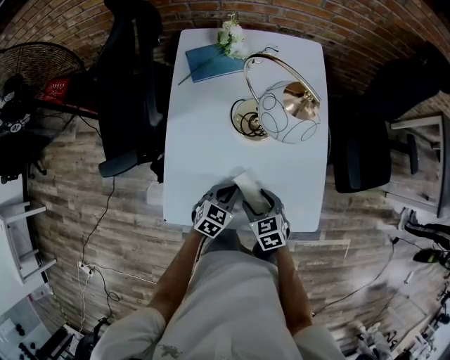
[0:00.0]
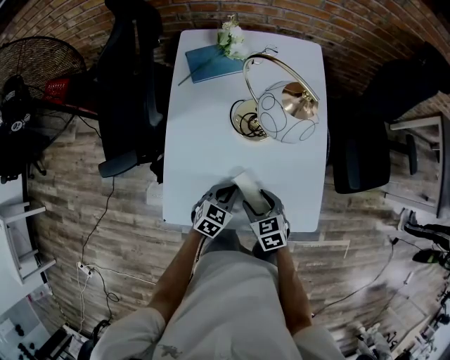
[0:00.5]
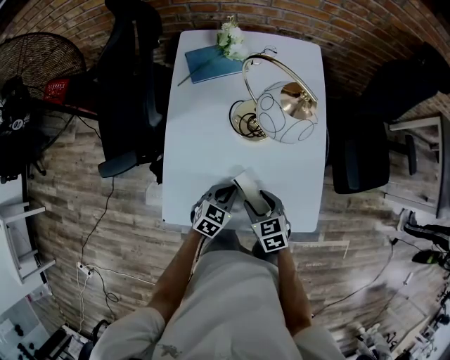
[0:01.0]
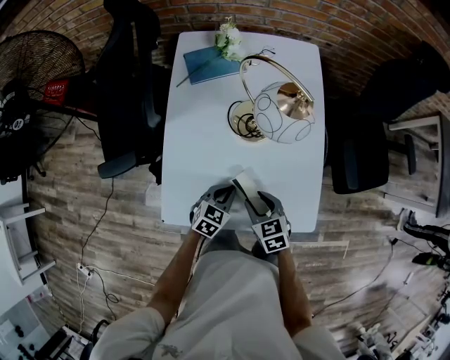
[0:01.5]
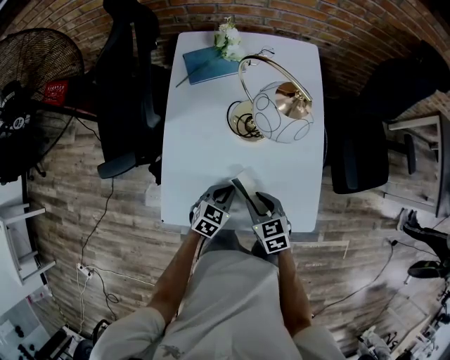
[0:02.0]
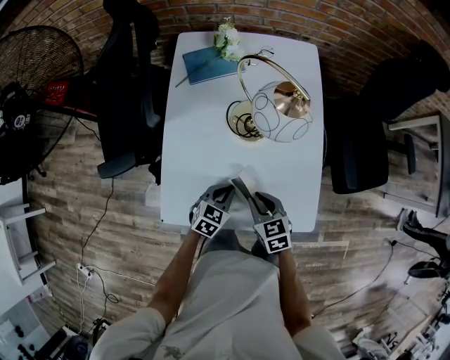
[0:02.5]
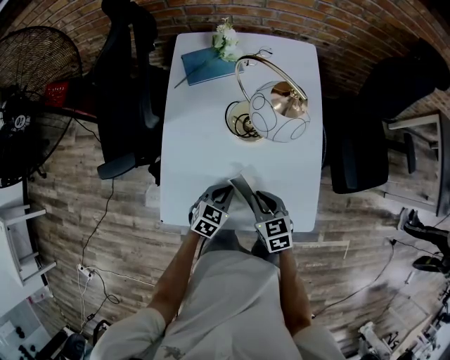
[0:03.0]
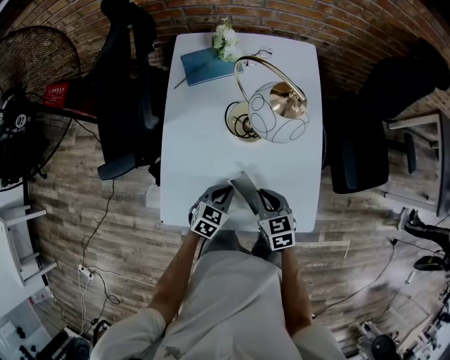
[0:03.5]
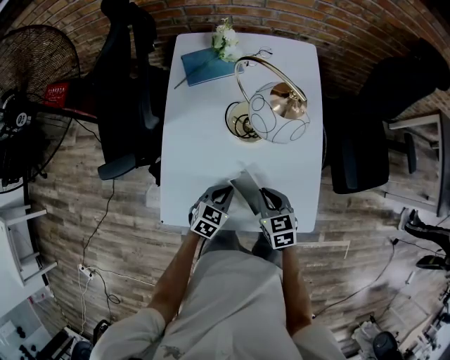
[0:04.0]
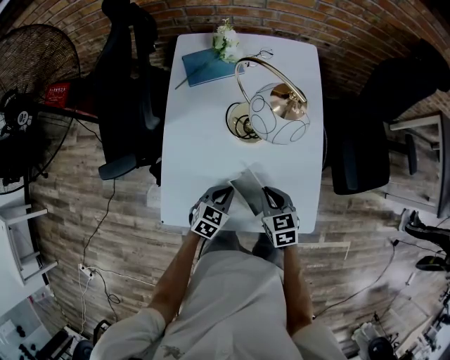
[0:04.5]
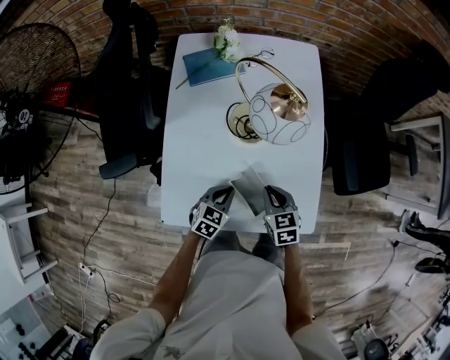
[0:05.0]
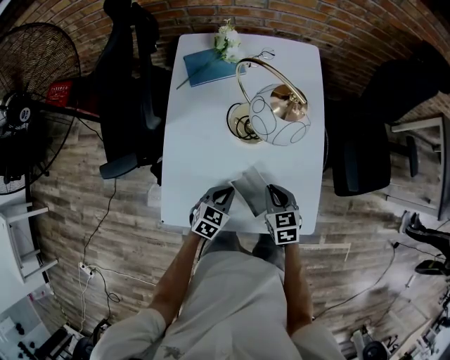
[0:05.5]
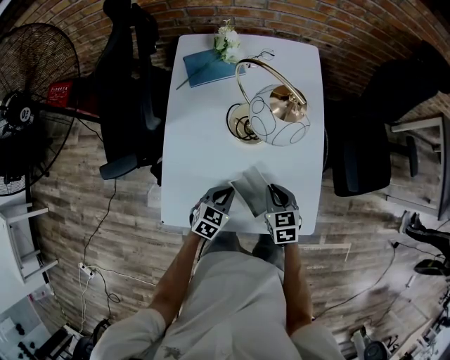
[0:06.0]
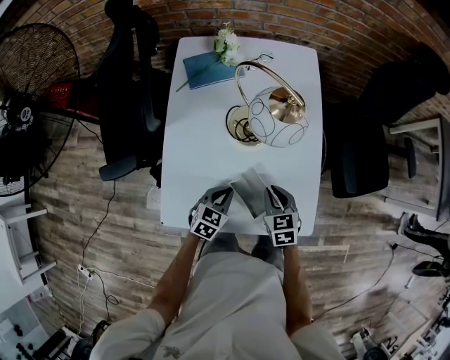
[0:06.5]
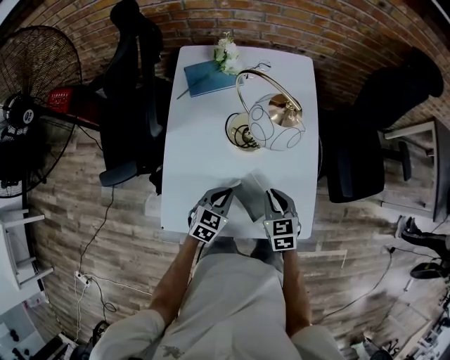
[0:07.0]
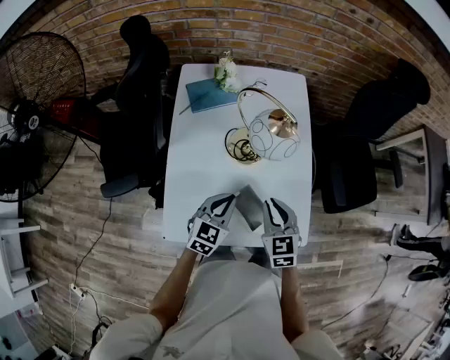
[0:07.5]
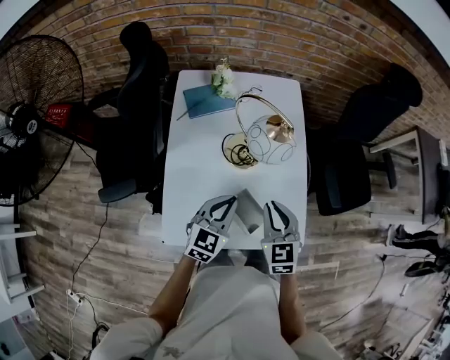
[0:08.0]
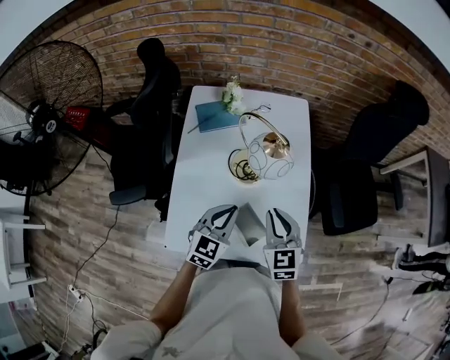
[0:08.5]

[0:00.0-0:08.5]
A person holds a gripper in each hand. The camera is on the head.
0:00.0 to 0:02.0: The right gripper closes up.
0:02.0 to 0:04.0: The right gripper closes.
0:04.0 to 0:06.5: The grippers move only a little.
0:06.5 to 0:08.5: The two grippers go about 20 cm upward. The left gripper turns by approximately 20 degrees. The right gripper rotates roughly 20 degrees.

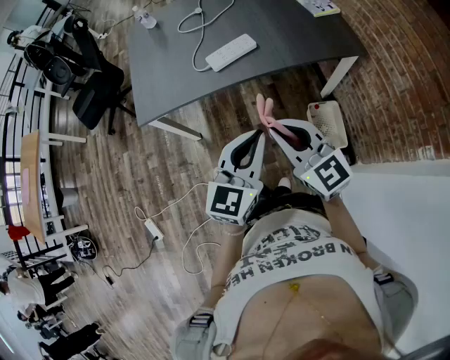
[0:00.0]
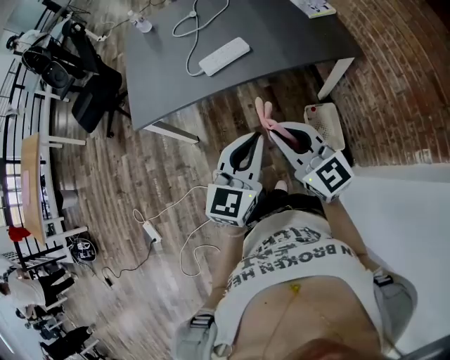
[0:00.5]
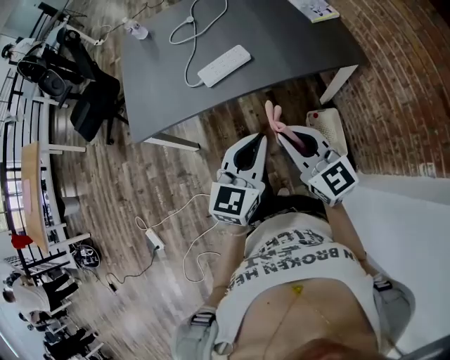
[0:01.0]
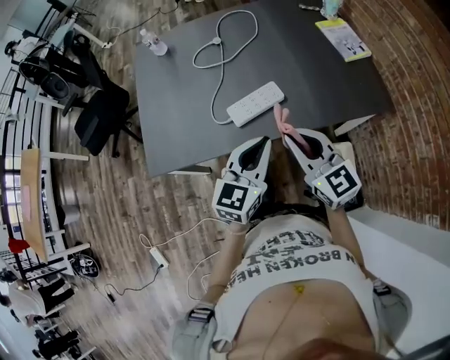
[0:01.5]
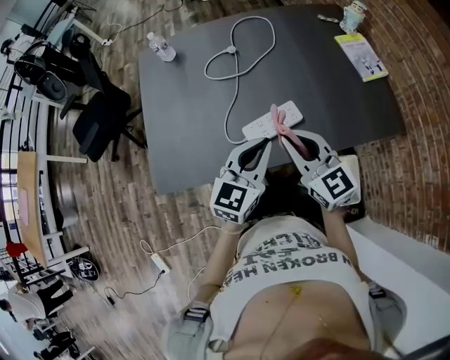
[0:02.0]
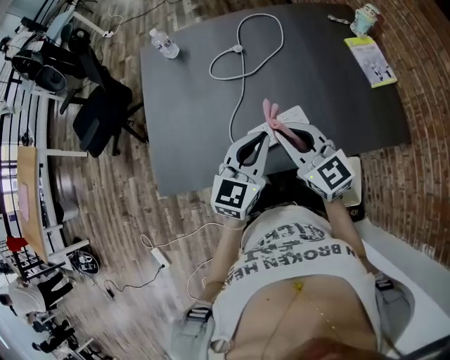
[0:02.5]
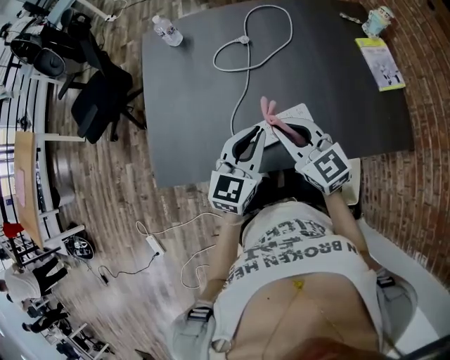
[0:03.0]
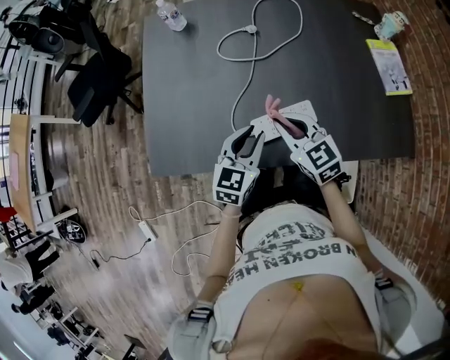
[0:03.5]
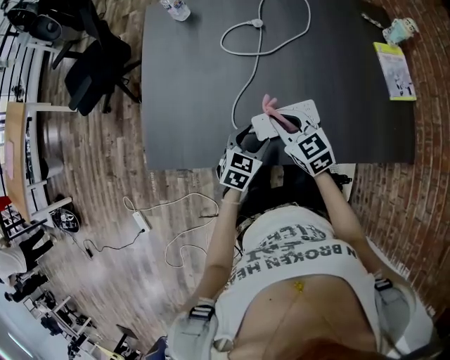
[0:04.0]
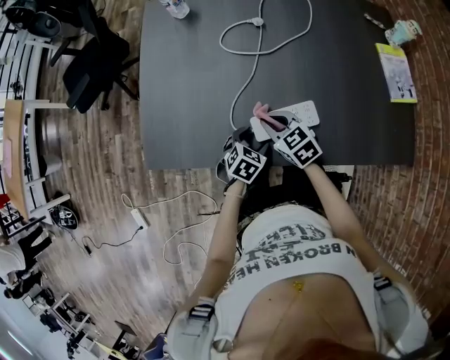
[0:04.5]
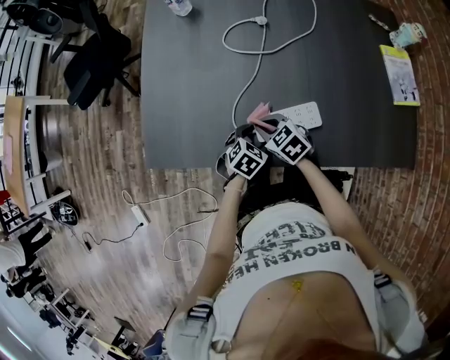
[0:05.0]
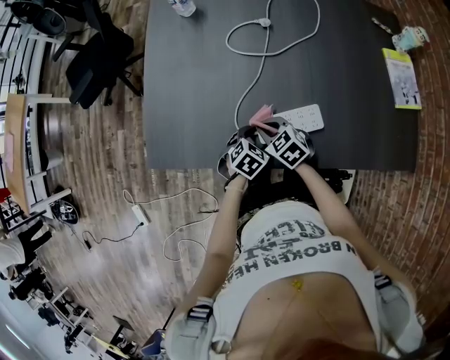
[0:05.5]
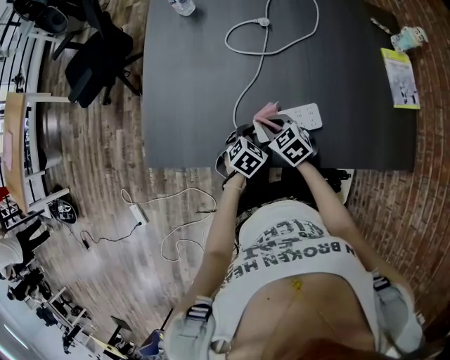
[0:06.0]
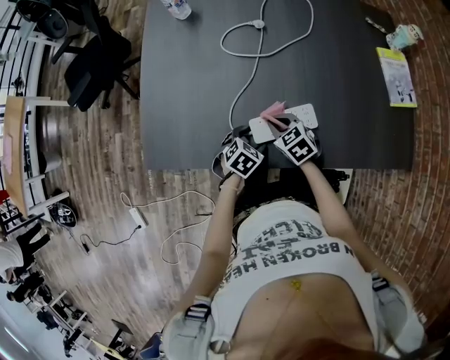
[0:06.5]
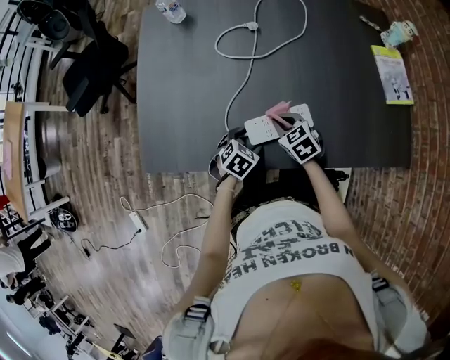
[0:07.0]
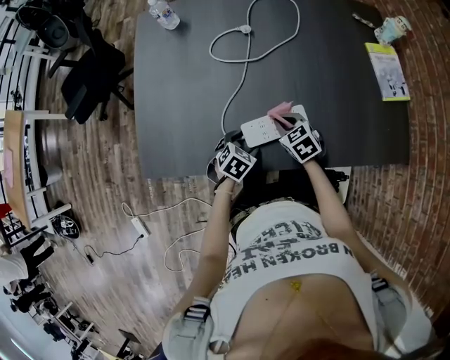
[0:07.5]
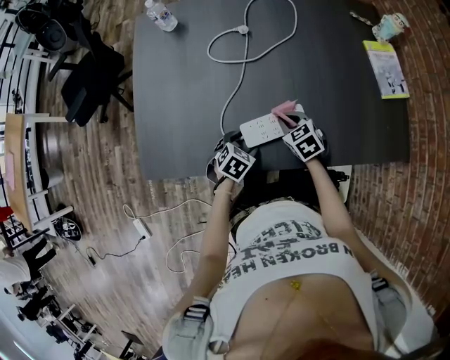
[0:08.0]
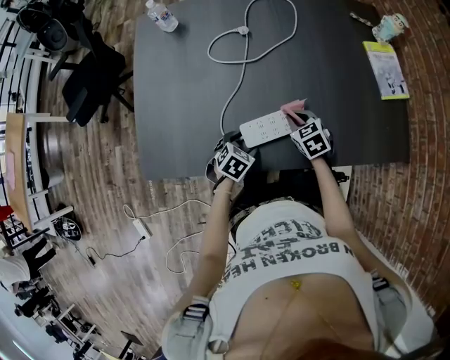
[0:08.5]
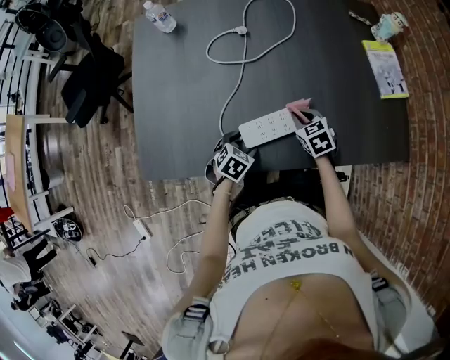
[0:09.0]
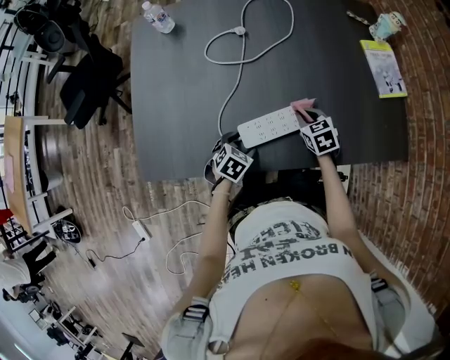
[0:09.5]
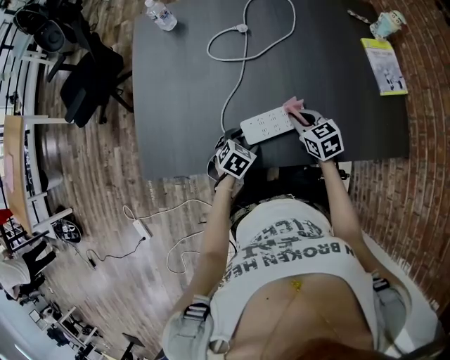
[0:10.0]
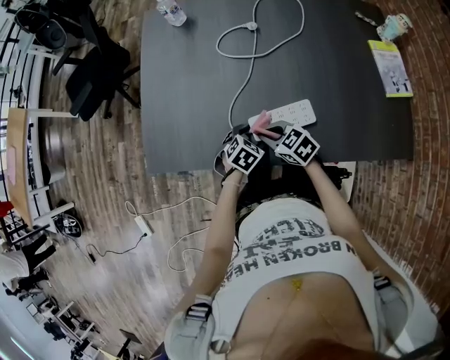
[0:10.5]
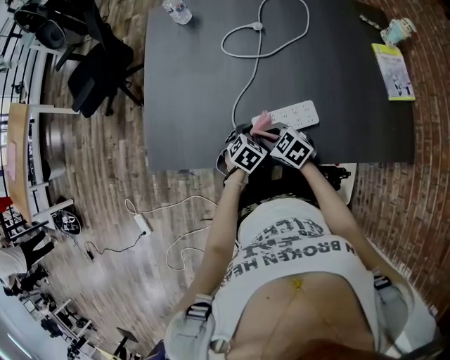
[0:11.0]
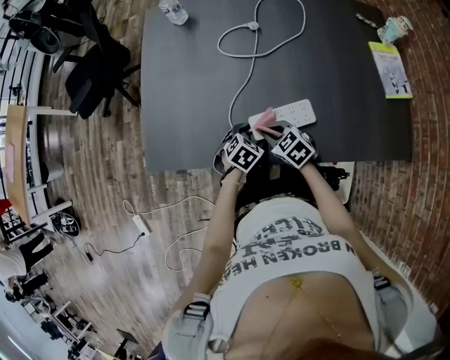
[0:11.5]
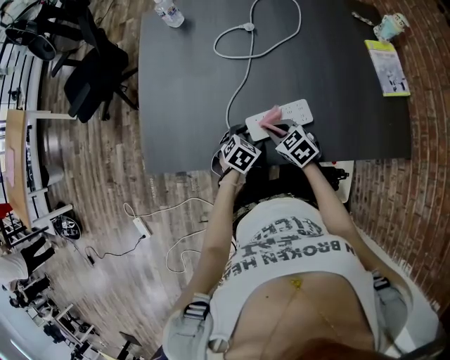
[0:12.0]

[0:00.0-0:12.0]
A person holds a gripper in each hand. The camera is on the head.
0:00.0 to 0:02.0: The grippers both shift forward by about 35 cm.
0:02.0 to 0:04.0: The left gripper is displaced downward by approximately 20 cm, swivels approximately 30 degrees, and opens up; the right gripper goes approximately 20 cm downward and forward, and swivels roughly 30 degrees.
0:04.0 to 0:06.0: The grippers both shift downward by roughly 10 cm. The left gripper changes its angle by roughly 20 degrees, while the right gripper rotates about 20 degrees.
0:06.0 to 0:08.0: The right gripper heads to the right, covering approximately 10 cm.
0:10.0 to 0:12.0: The right gripper travels to the left by roughly 10 cm.

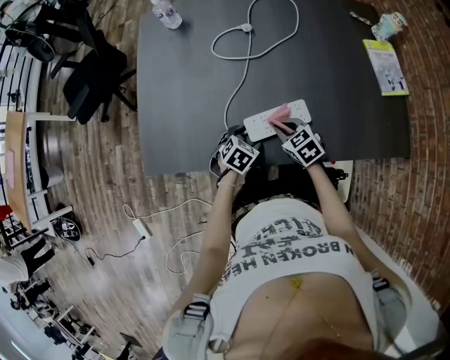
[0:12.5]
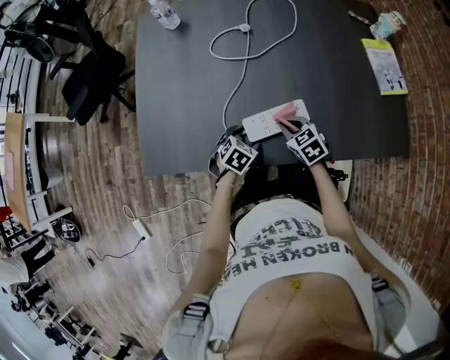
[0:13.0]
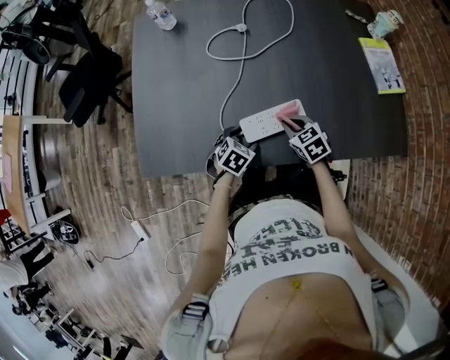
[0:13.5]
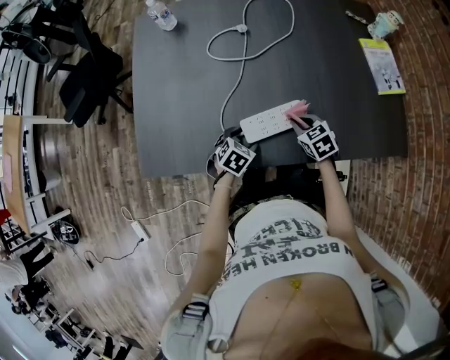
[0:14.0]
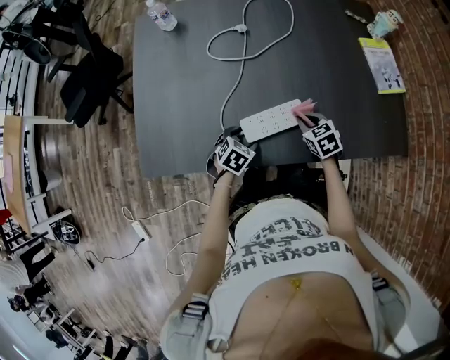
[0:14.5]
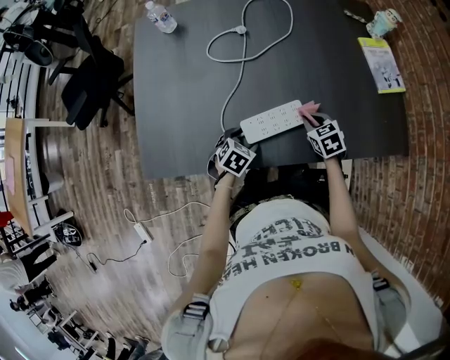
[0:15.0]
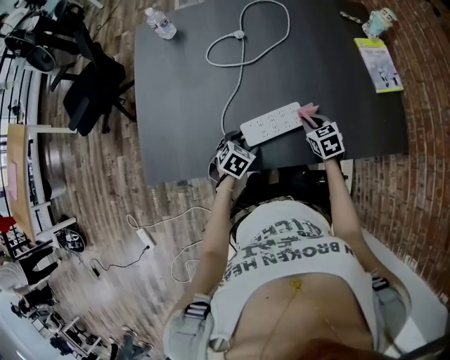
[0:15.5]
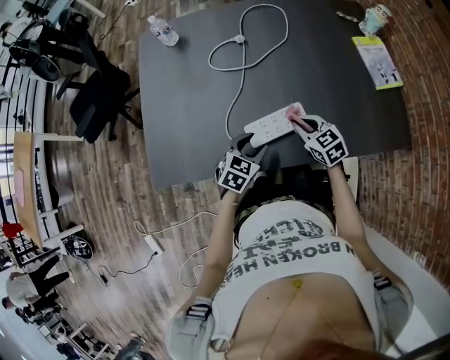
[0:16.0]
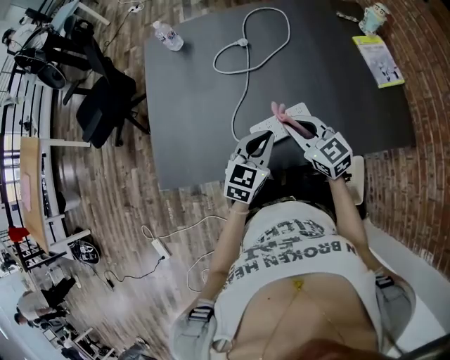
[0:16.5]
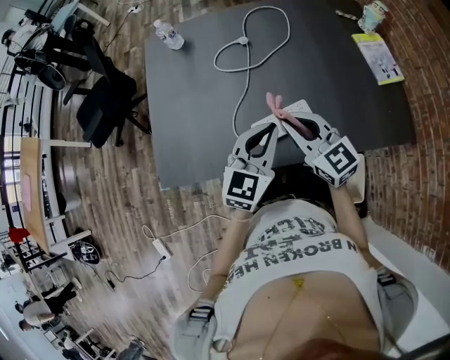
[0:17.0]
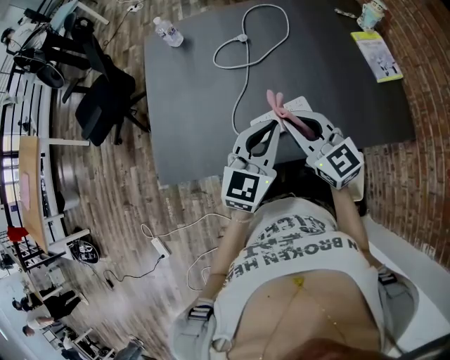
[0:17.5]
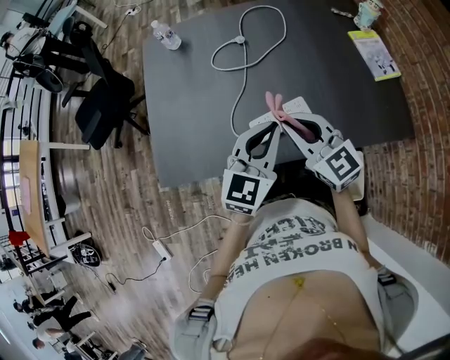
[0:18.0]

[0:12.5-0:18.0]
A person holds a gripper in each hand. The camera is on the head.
0:12.5 to 0:14.5: The right gripper travels to the right by some 10 cm.
0:14.5 to 0:16.0: Both grippers move upward, about 5 cm.
0:16.0 to 0:18.0: Both grippers move upward, roughly 20 cm. The right gripper changes its angle by roughly 30 degrees; the left gripper changes its angle by roughly 30 degrees, and closes.

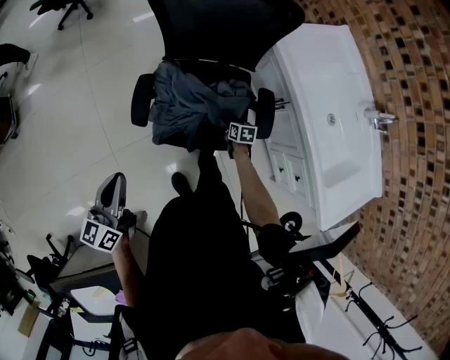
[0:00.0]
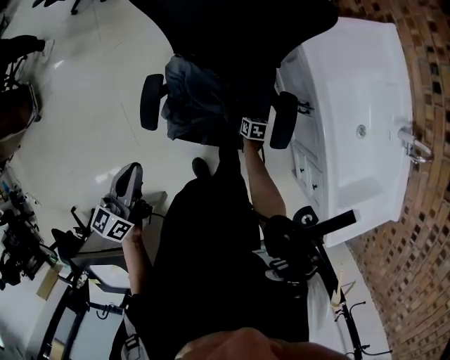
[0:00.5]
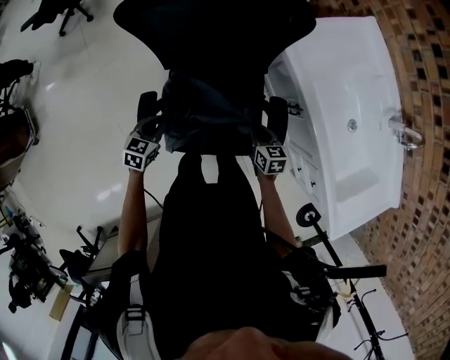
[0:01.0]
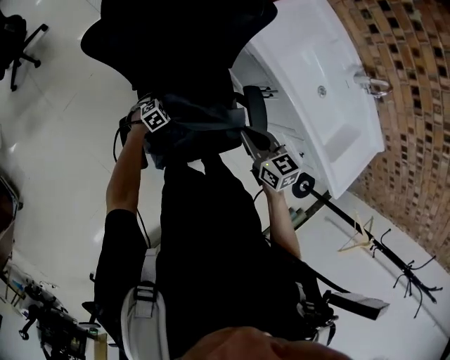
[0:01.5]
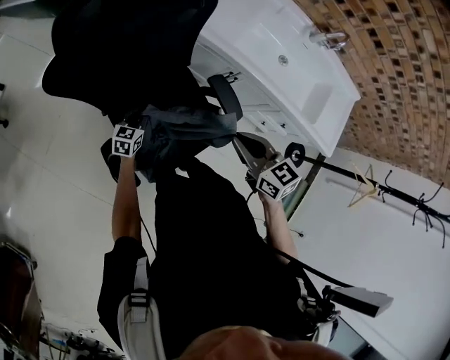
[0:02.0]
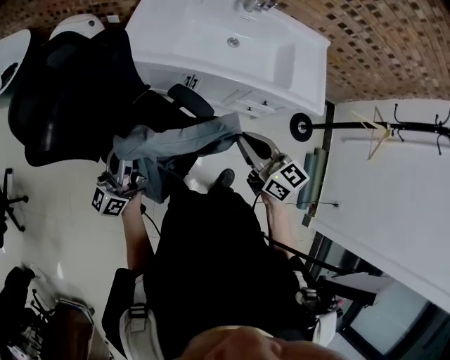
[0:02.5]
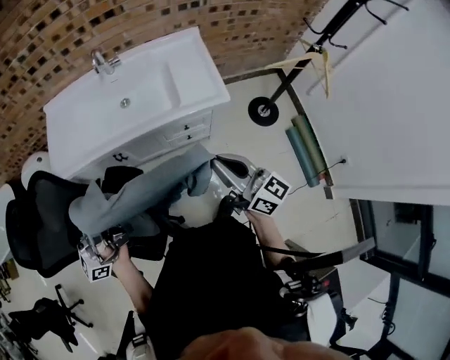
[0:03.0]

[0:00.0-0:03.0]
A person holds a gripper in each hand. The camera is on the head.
0:00.0 to 0:01.5: The left gripper shifts about 40 cm downward, angles its fingers downward, by roughly 50 degrees, and opens up, while the right gripper goes roughly 30 cm upward, rotates approximately 30 degrees, and closes its fingers.
0:01.5 to 0:03.0: The right gripper shifts by about 60 cm, and angles its fingers upward, by some 40 degrees, while the left gripper shifts about 60 cm upward, tilts its fingers some 100 degrees upward, and closes its fingers.
